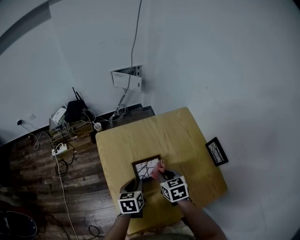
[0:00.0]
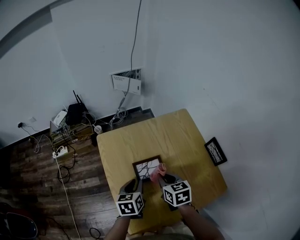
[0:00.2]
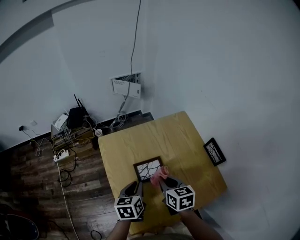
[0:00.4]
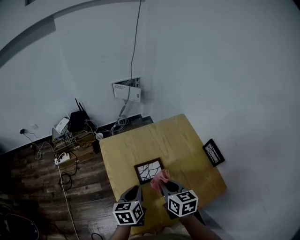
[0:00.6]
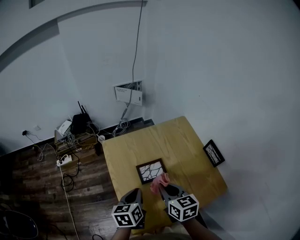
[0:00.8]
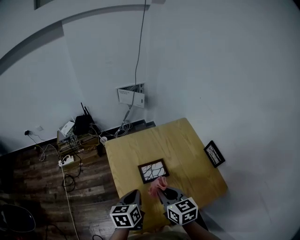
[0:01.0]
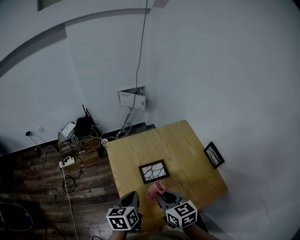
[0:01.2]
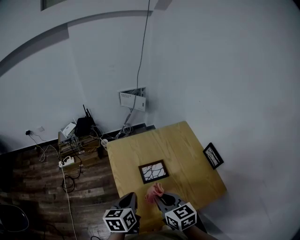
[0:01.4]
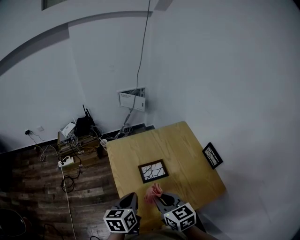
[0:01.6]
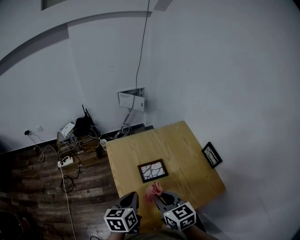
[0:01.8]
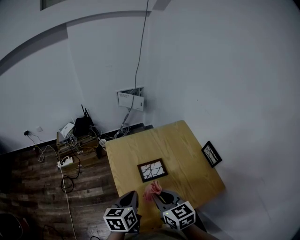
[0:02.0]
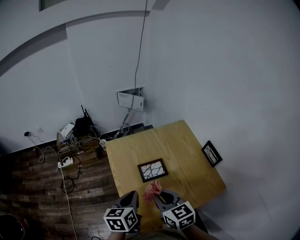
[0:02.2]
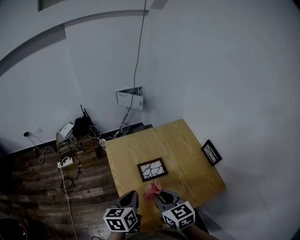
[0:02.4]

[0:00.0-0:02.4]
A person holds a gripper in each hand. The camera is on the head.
0:00.0 to 0:01.2: The right gripper heads upward, backward and to the left, covering about 20 cm, and changes its angle by roughly 20 degrees. Meanwhile the left gripper shifts about 15 cm upward and backward, and closes up.
0:01.2 to 0:02.4: The grippers stay close to where they were, moving slightly.

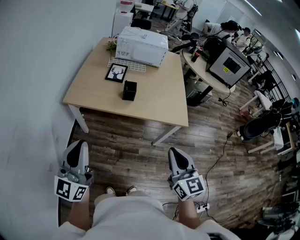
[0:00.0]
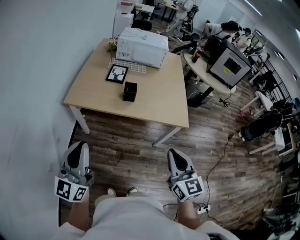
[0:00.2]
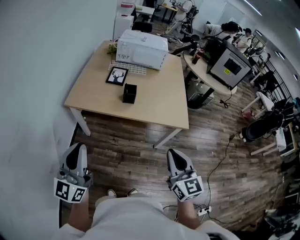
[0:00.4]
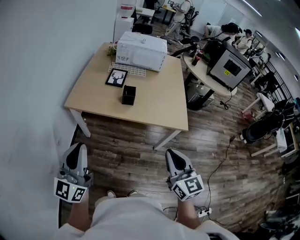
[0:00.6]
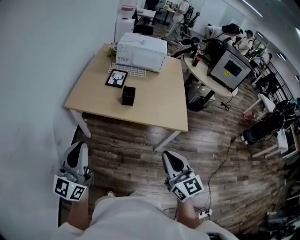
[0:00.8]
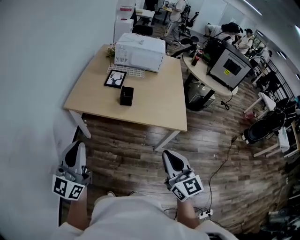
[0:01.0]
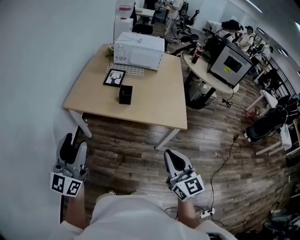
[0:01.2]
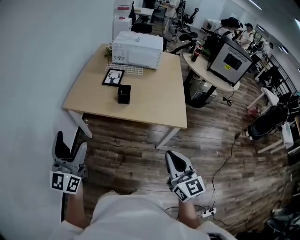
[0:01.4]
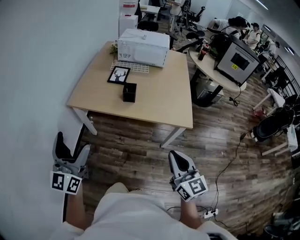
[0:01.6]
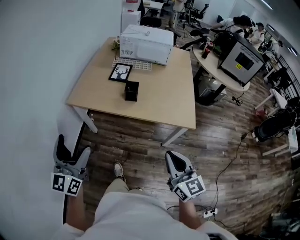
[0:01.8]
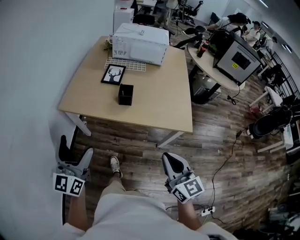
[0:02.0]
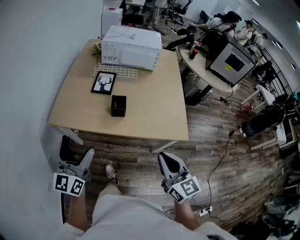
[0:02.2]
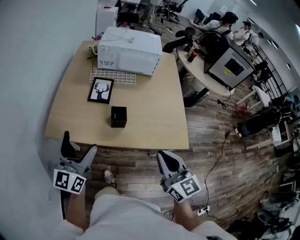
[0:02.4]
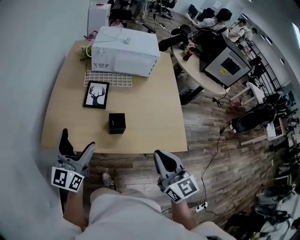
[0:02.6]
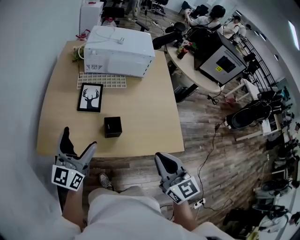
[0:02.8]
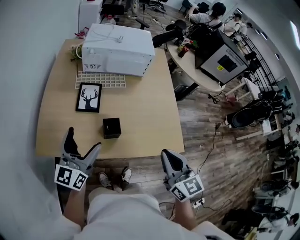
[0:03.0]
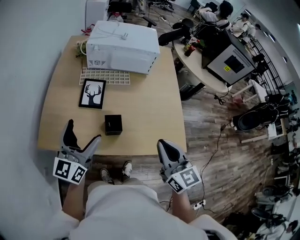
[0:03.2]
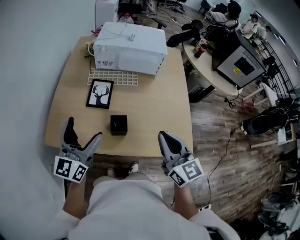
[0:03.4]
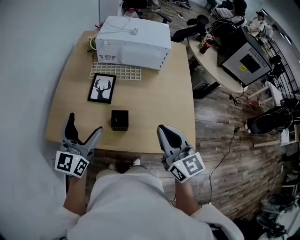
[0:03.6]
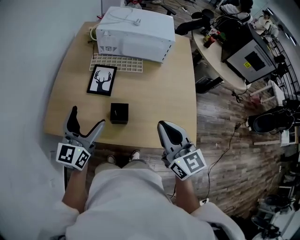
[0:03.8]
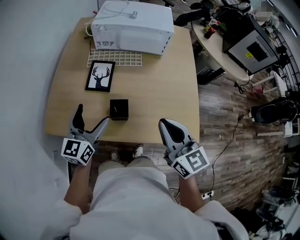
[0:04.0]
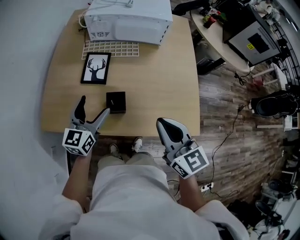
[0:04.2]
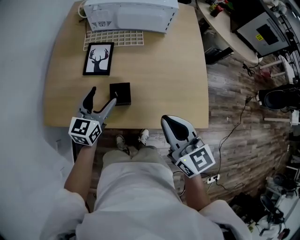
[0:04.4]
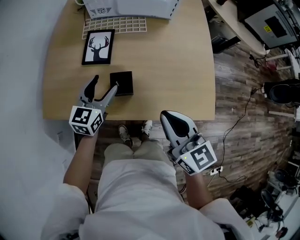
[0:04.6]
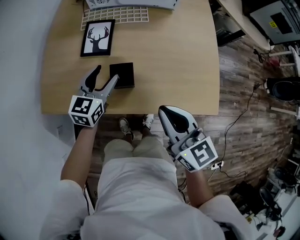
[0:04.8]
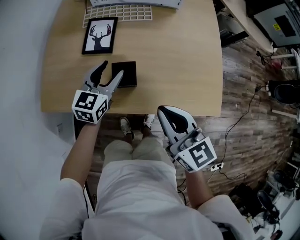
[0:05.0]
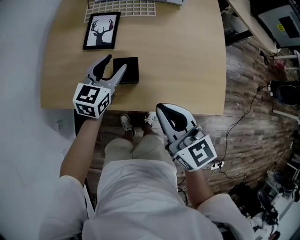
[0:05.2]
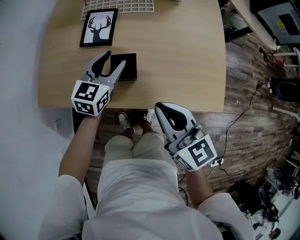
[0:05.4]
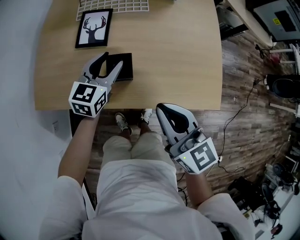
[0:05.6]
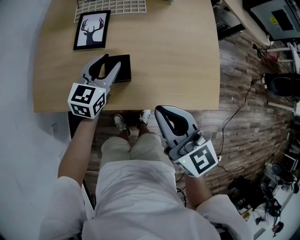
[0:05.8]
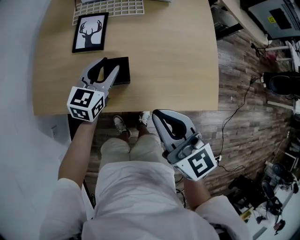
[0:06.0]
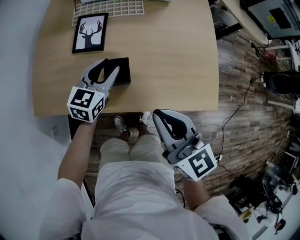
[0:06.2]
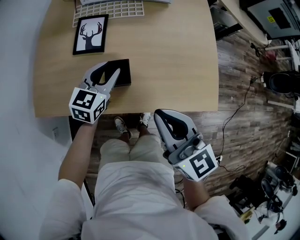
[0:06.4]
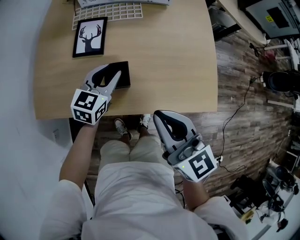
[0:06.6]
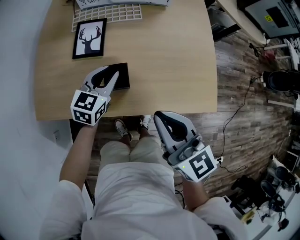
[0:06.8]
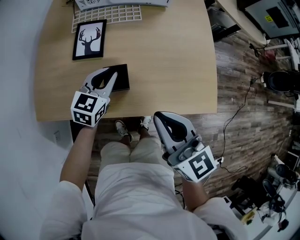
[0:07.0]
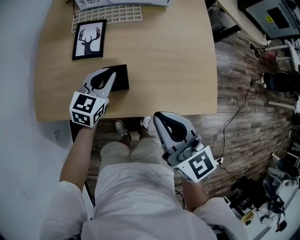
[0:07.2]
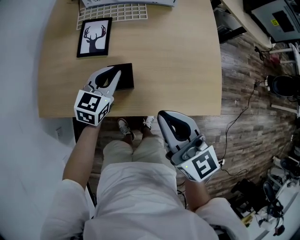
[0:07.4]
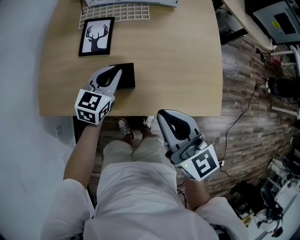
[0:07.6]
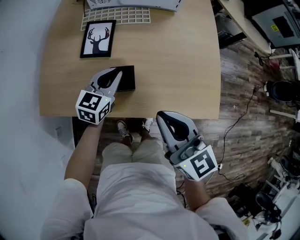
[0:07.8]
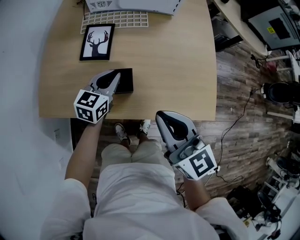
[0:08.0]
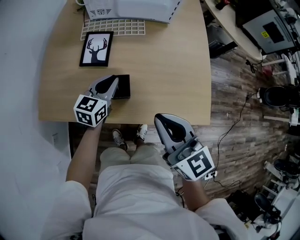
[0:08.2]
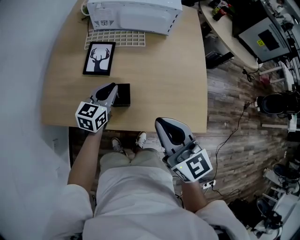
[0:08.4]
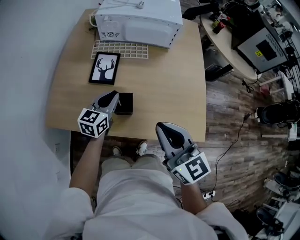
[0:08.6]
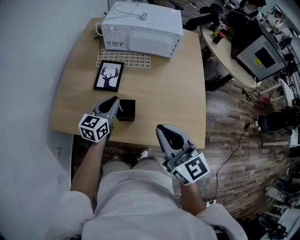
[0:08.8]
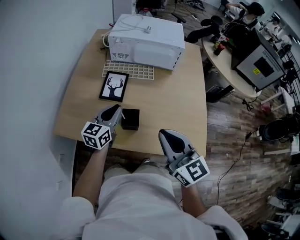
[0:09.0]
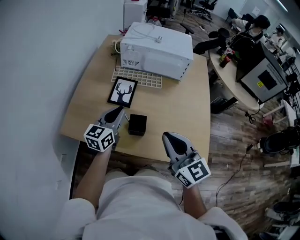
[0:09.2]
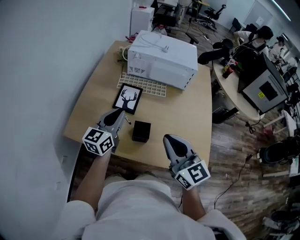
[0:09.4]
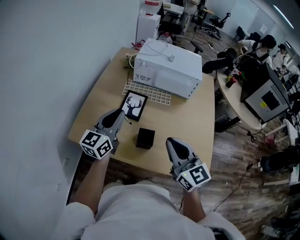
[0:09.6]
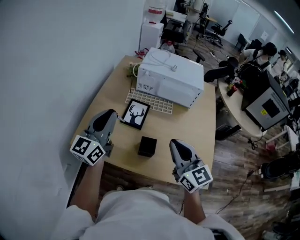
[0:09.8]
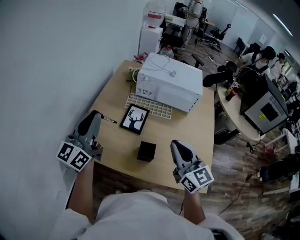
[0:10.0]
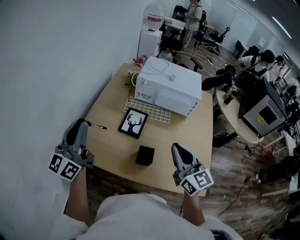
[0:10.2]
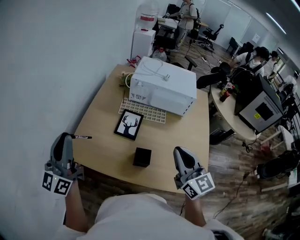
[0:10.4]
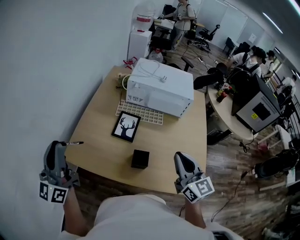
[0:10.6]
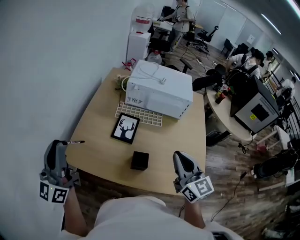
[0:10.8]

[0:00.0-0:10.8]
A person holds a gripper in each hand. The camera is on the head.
0:00.0 to 0:01.6: The left gripper opens up, while the right gripper shifts approximately 5 cm to the right.
0:01.6 to 0:03.0: The two grippers go approximately 35 cm forward. The left gripper changes its angle by about 30 degrees.
0:03.0 to 0:04.6: The left gripper shifts some 20 cm downward, forward and to the right, and turns by some 30 degrees. The right gripper goes some 10 cm downward and forward.
0:04.6 to 0:06.2: The left gripper moves about 5 cm.
0:06.2 to 0:07.8: The grippers make only small movements.
0:07.8 to 0:09.2: The left gripper goes about 15 cm upward and to the left, and swivels about 20 degrees; the right gripper goes approximately 10 cm upward.
0:09.2 to 0:10.8: The right gripper goes about 10 cm forward and upward; the left gripper heads to the left and upward, covering roughly 35 cm, and points its fingers roughly 30 degrees further upward.

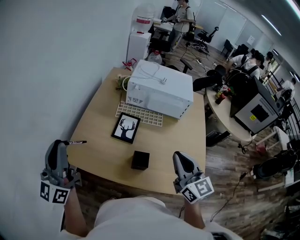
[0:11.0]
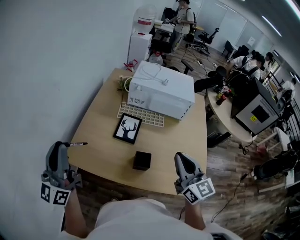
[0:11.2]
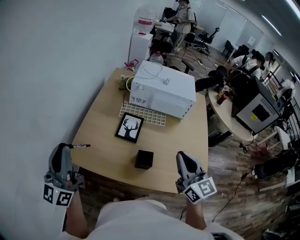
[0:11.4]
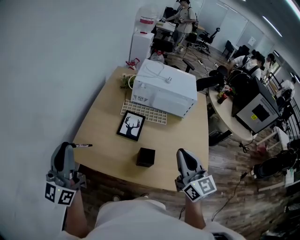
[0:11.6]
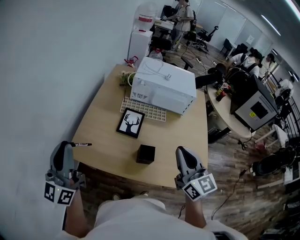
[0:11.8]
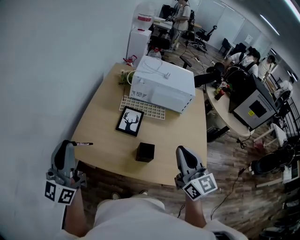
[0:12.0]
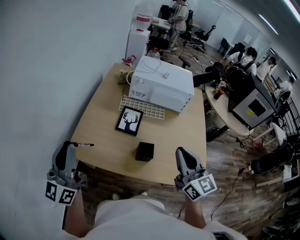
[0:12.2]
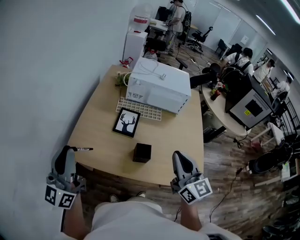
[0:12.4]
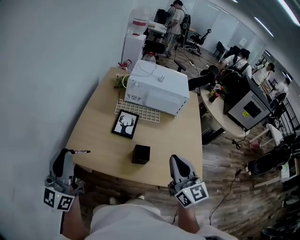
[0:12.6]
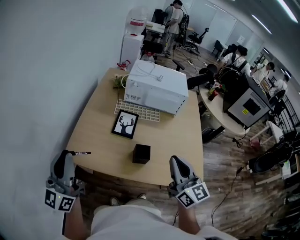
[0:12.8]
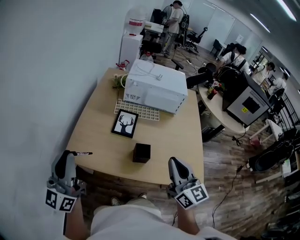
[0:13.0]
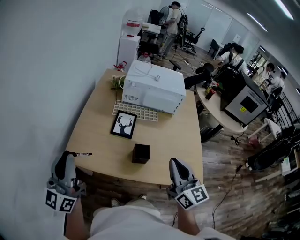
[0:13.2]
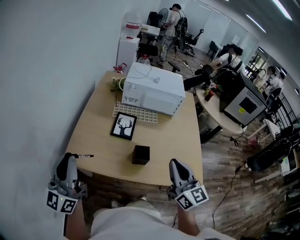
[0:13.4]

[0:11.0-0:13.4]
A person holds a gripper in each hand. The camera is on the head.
0:11.0 to 0:12.2: The right gripper changes place by about 5 cm.
0:12.2 to 0:13.4: The right gripper ends up approximately 5 cm from where it was.

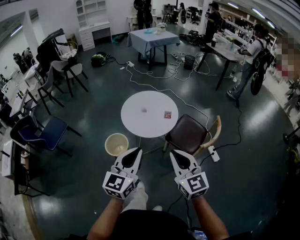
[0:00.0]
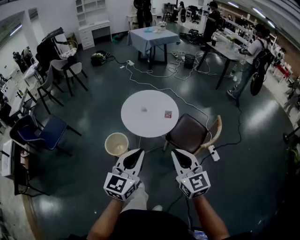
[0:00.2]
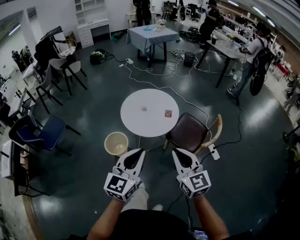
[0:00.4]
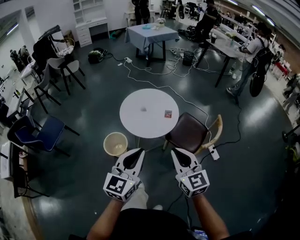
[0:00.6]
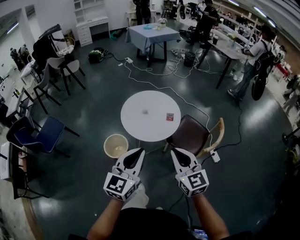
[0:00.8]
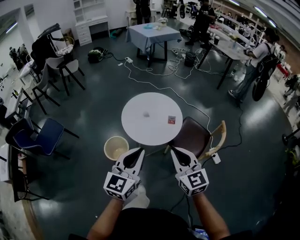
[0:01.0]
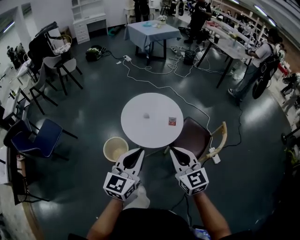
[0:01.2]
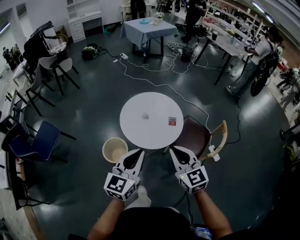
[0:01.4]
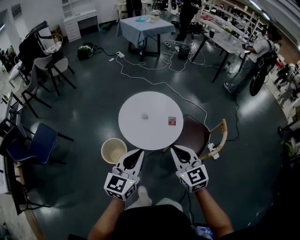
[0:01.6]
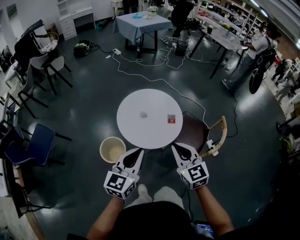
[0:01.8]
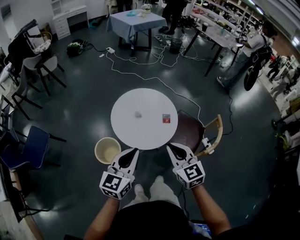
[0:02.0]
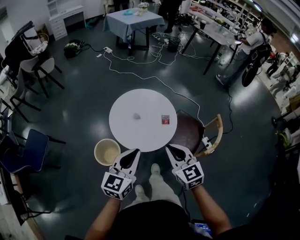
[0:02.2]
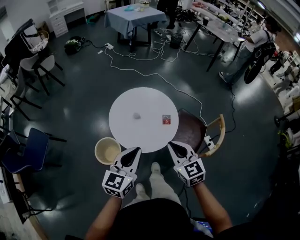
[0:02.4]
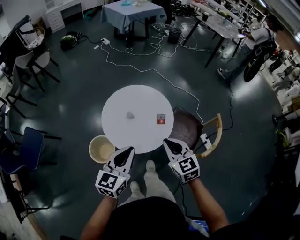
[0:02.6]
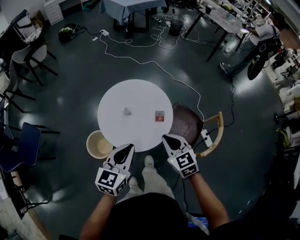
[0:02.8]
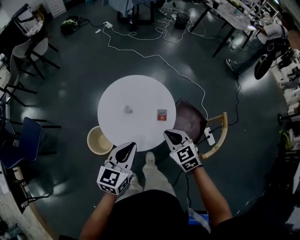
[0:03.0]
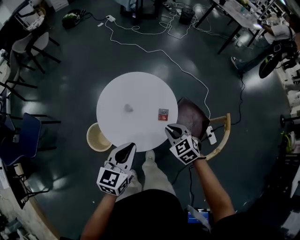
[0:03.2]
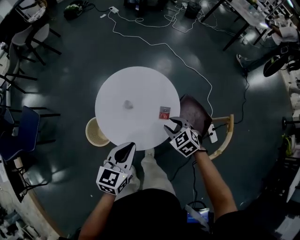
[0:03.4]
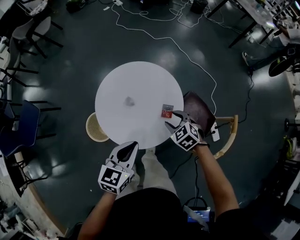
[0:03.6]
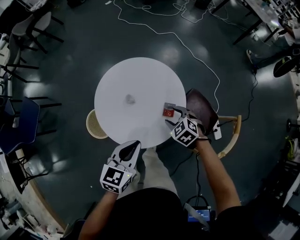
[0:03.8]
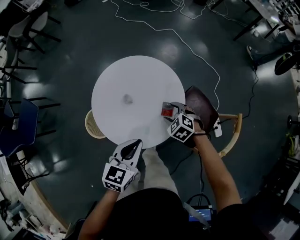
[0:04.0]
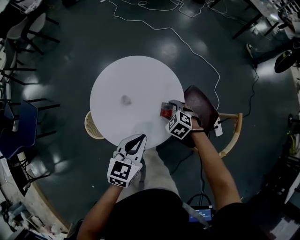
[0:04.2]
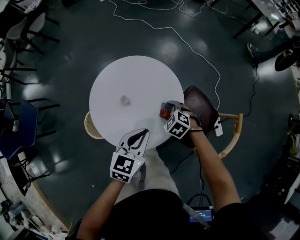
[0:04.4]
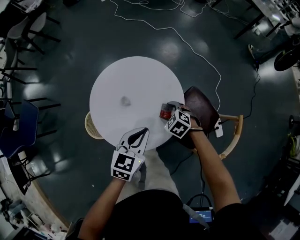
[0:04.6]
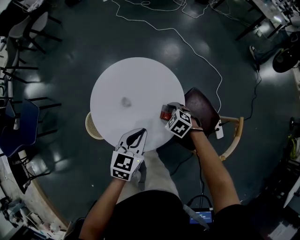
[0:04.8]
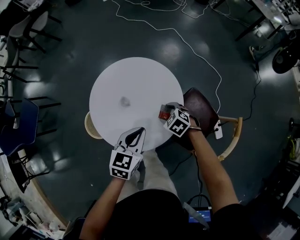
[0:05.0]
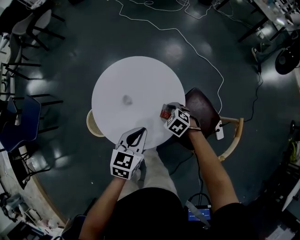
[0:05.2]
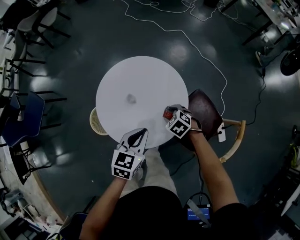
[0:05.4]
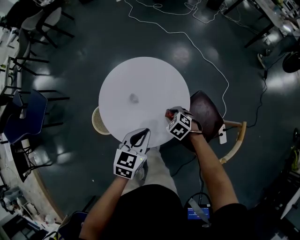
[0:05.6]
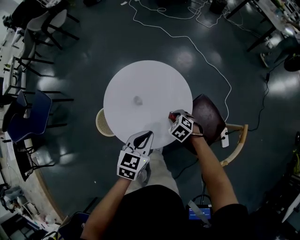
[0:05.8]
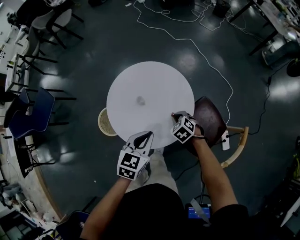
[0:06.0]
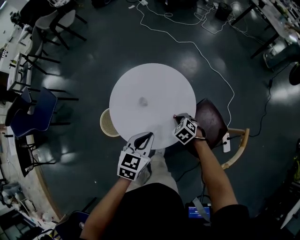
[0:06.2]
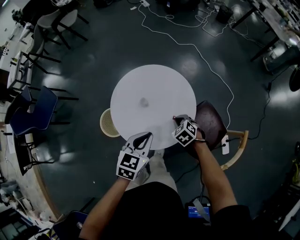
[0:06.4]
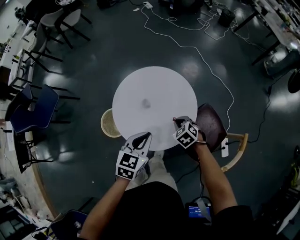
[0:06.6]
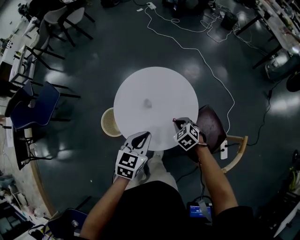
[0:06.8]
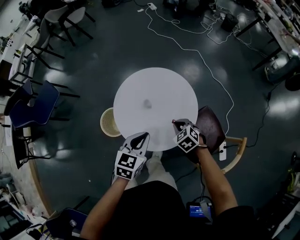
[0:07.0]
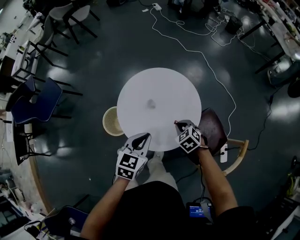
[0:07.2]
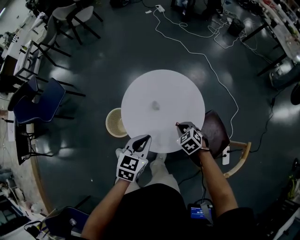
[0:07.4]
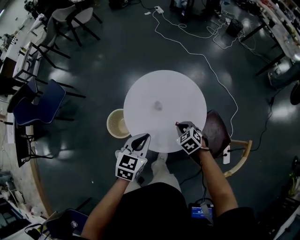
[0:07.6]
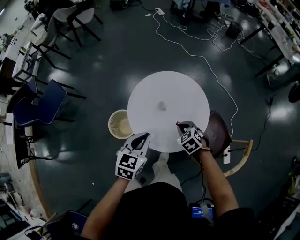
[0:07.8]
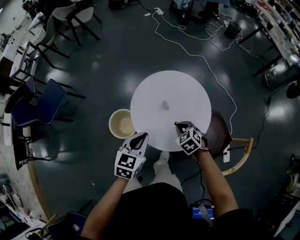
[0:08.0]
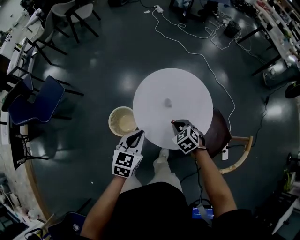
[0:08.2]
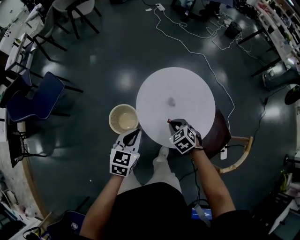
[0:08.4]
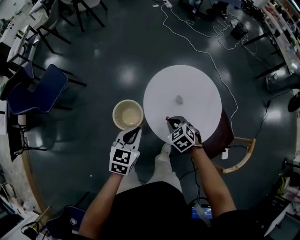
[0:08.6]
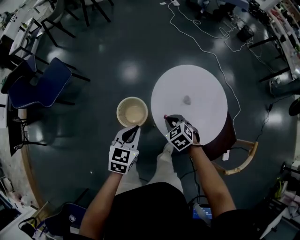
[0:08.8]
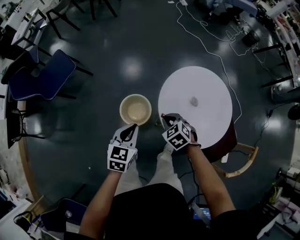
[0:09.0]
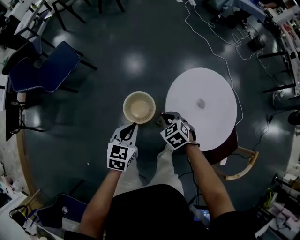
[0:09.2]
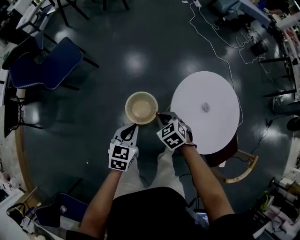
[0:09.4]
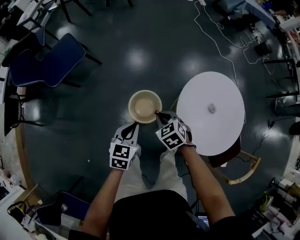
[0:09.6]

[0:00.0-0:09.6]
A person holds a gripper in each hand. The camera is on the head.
0:00.0 to 0:01.6: Both grippers travel together forward and to the left, approximately 25 cm.
0:01.6 to 0:03.2: Both grippers move forward and downward, roughly 30 cm. The right gripper changes its angle by roughly 30 degrees.
0:03.2 to 0:04.8: The right gripper moves downward and forward, some 25 cm, rotates roughly 30 degrees, and opens up. Meanwhile the left gripper is displaced downward, forward and to the right by some 20 cm.
0:04.8 to 0:06.4: The right gripper moves roughly 5 cm, and closes, while the left gripper is displaced upward by roughly 5 cm.
0:06.4 to 0:08.0: The right gripper moves to the left and upward, roughly 15 cm. The left gripper shifts approximately 15 cm to the left.
0:08.0 to 0:09.6: The grippers both shift to the left by about 35 cm. The left gripper turns by roughly 20 degrees.
